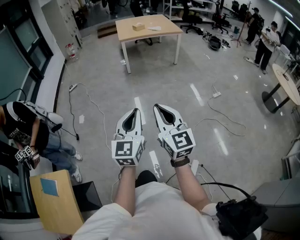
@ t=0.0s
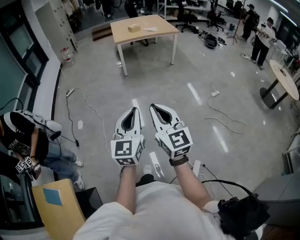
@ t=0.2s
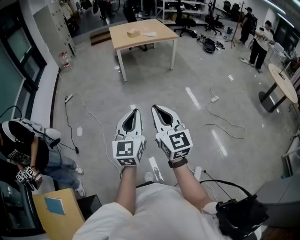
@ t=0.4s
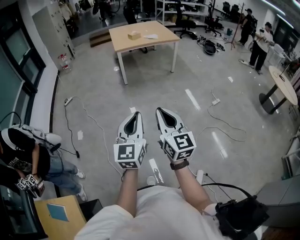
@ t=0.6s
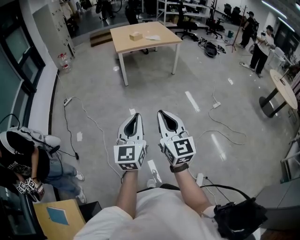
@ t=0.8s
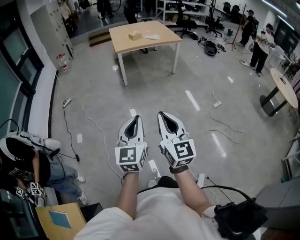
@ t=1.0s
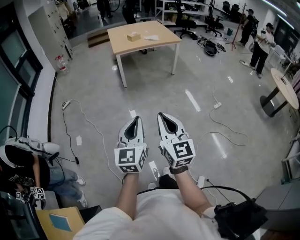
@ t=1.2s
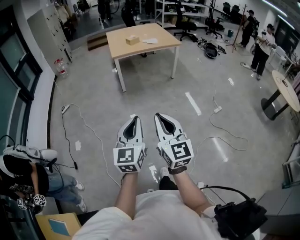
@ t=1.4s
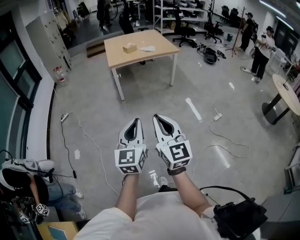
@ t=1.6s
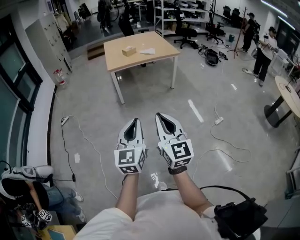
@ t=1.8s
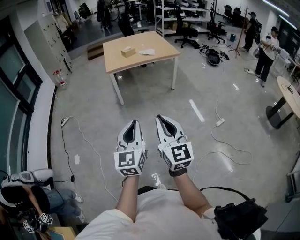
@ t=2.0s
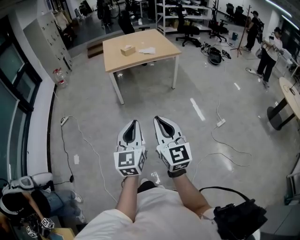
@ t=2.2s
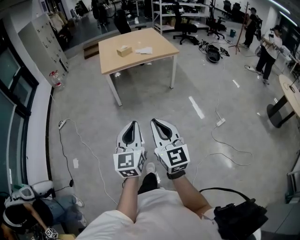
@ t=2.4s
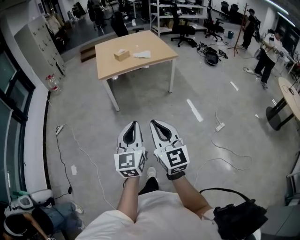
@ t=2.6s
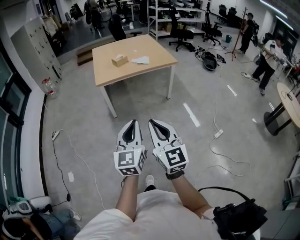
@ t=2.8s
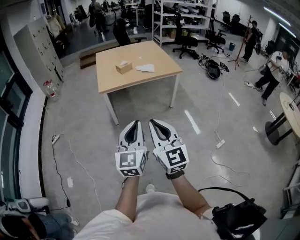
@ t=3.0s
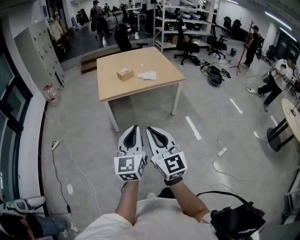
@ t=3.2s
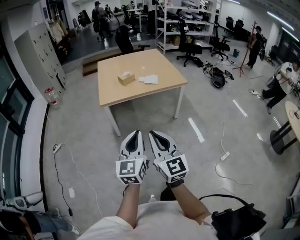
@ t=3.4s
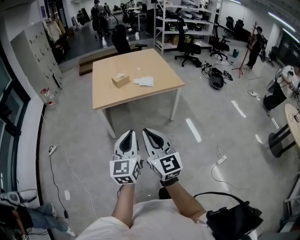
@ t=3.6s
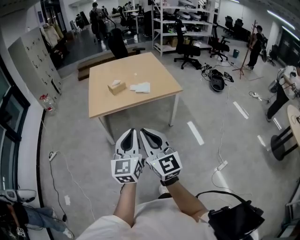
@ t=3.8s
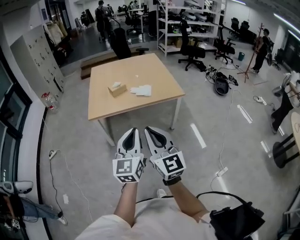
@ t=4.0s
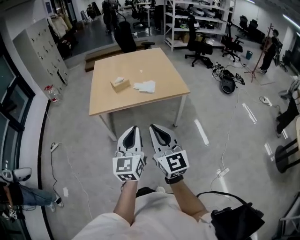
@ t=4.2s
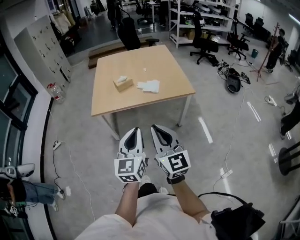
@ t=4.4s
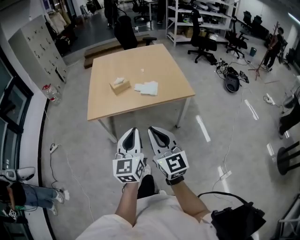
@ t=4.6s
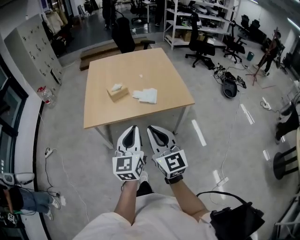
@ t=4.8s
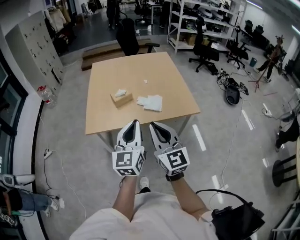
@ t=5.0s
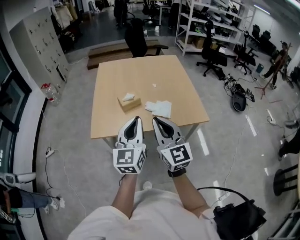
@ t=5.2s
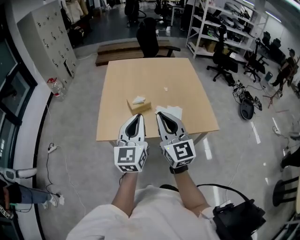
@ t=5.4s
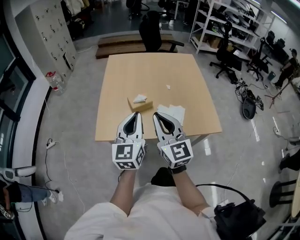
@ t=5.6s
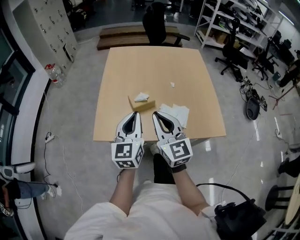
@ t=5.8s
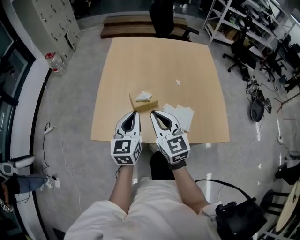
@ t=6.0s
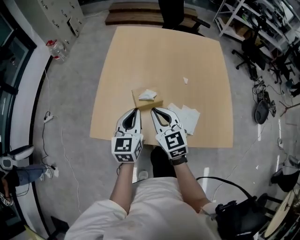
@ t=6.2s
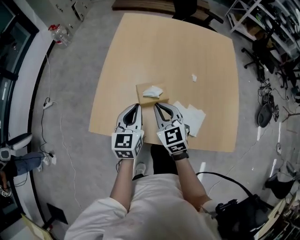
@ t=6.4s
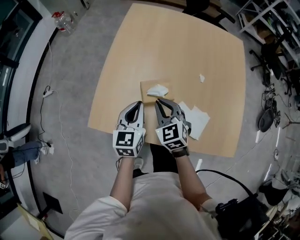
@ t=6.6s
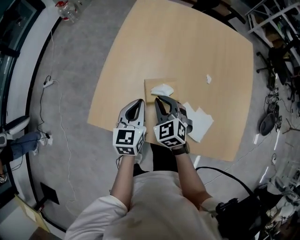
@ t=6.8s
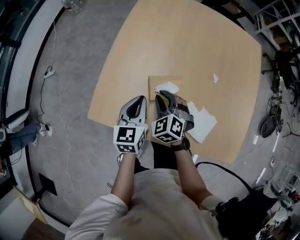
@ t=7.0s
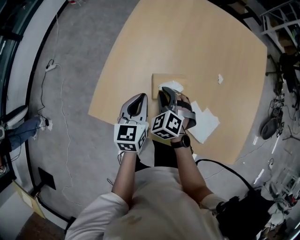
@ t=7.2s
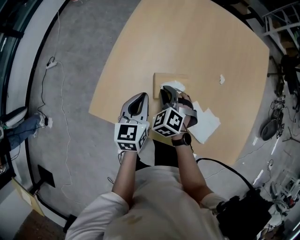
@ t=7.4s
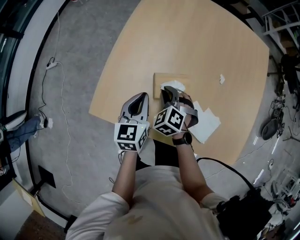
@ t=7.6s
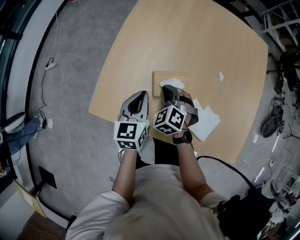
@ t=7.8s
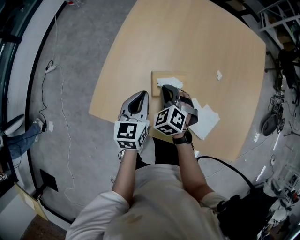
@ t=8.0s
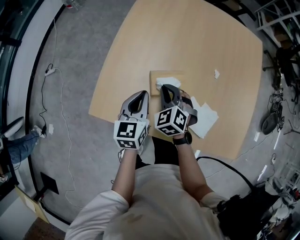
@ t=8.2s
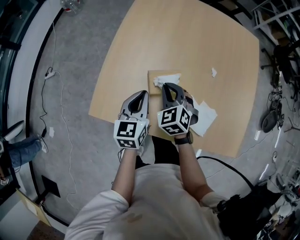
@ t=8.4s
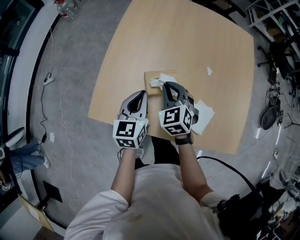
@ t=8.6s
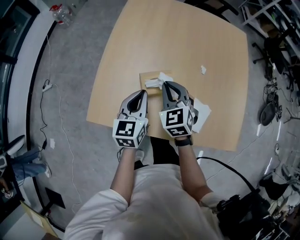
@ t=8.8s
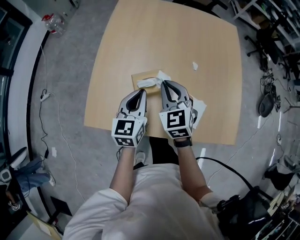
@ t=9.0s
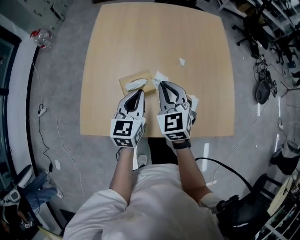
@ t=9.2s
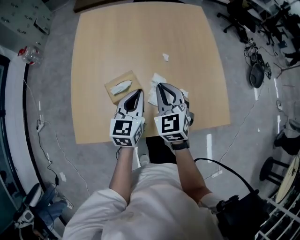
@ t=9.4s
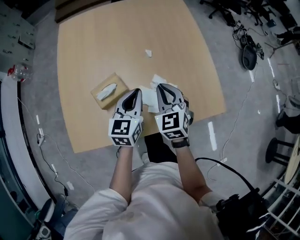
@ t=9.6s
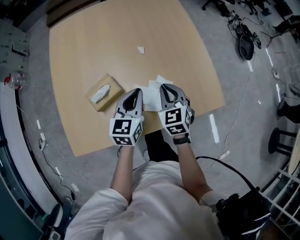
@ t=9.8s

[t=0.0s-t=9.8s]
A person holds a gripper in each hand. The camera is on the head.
t=0.0s to t=1.4s: The two grippers go approximately 30 cm forward.
t=1.4s to t=2.8s: The two grippers go some 40 cm forward.
t=2.8s to t=4.2s: The two grippers travel together, forward and to the right, roughly 40 cm.
t=4.2s to t=5.6s: Both grippers are carried forward, about 50 cm.
t=5.6s to t=7.0s: The left gripper heads forward and downward, covering approximately 35 cm, and changes its angle by about 30 degrees. Meanwhile the right gripper is displaced downward and forward by about 40 cm, and tips its fingers downward by some 50 degrees.
t=7.0s to t=8.4s: The grippers move only a little.
t=8.4s to t=9.8s: The left gripper changes place by some 25 cm, and rotates approximately 30 degrees. Meanwhile the right gripper travels upward and back again, about 10 cm each way, and changes its angle by approximately 40 degrees.

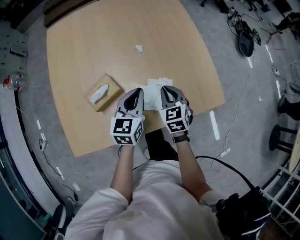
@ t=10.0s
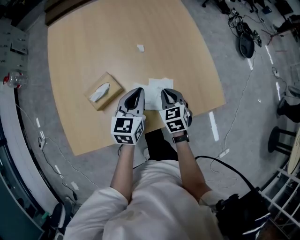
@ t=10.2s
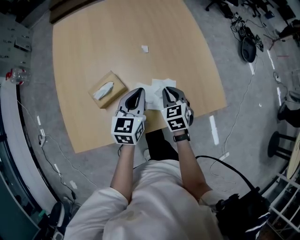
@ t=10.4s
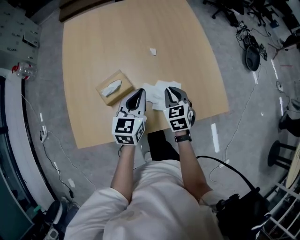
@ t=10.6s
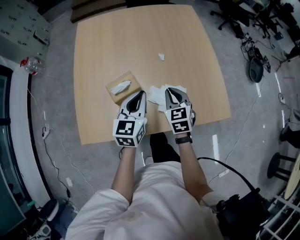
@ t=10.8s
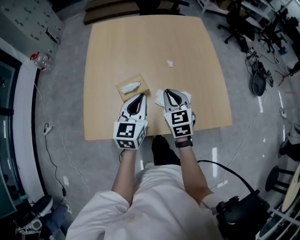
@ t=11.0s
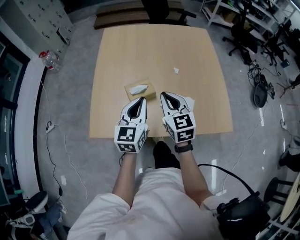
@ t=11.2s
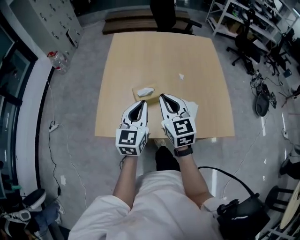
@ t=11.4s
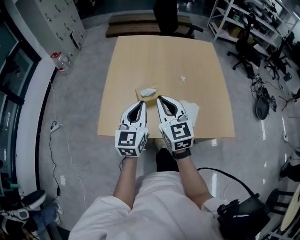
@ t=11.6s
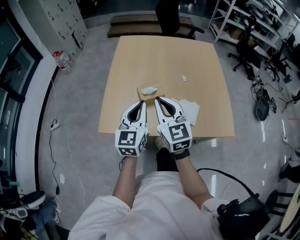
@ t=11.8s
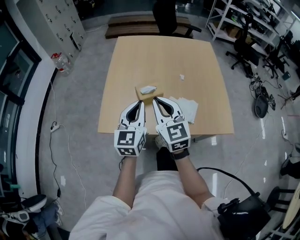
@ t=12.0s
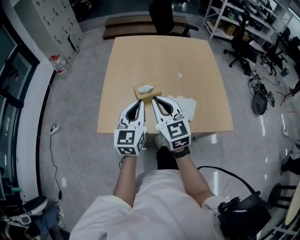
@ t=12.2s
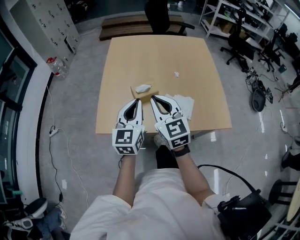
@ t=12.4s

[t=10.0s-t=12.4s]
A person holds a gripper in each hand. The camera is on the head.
t=10.0s to t=11.2s: The left gripper moves to the left, upward and backward, roughly 20 cm, and turns by about 20 degrees; the right gripper moves upward, to the left and backward, roughly 25 cm, and turns by about 30 degrees.
t=11.2s to t=12.4s: The right gripper shifts approximately 15 cm backward, to the left and upward. The left gripper heads backward and to the left, covering approximately 10 cm.

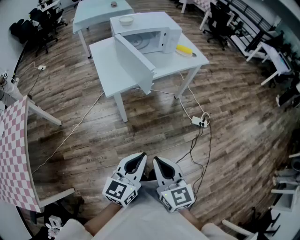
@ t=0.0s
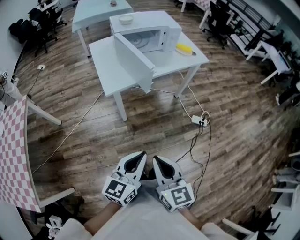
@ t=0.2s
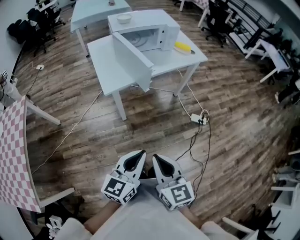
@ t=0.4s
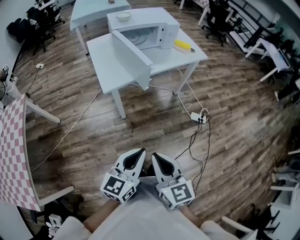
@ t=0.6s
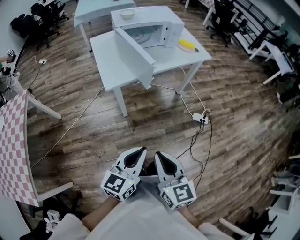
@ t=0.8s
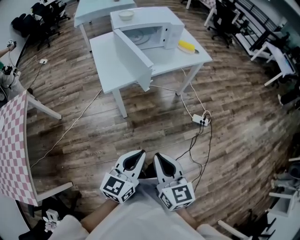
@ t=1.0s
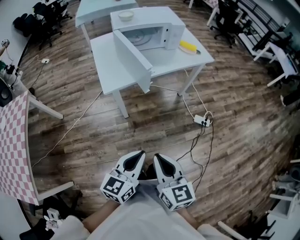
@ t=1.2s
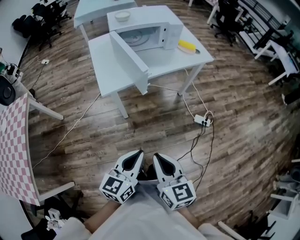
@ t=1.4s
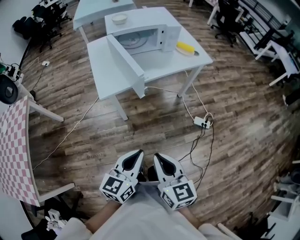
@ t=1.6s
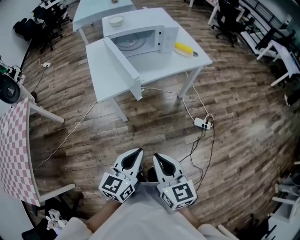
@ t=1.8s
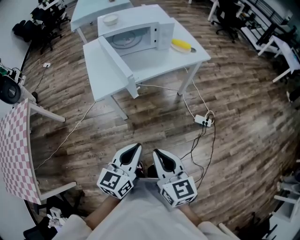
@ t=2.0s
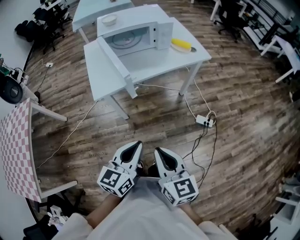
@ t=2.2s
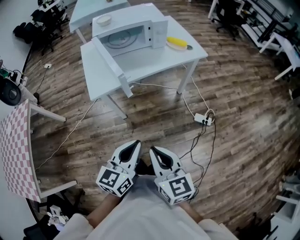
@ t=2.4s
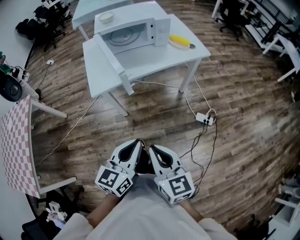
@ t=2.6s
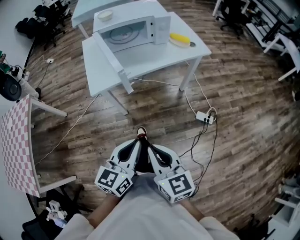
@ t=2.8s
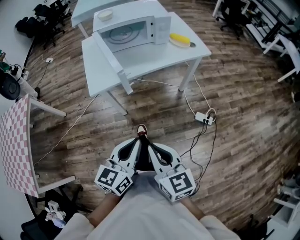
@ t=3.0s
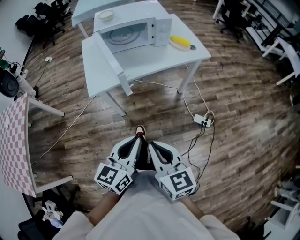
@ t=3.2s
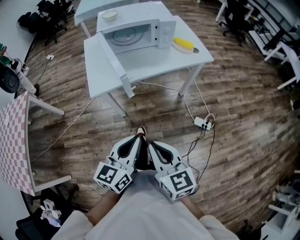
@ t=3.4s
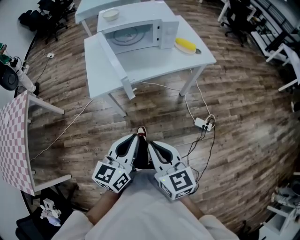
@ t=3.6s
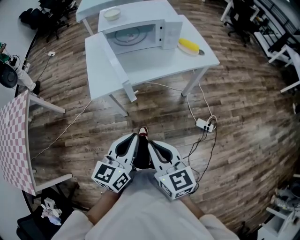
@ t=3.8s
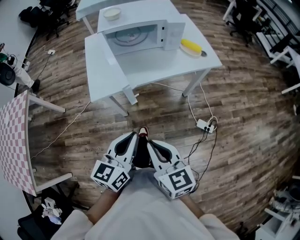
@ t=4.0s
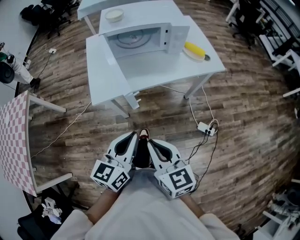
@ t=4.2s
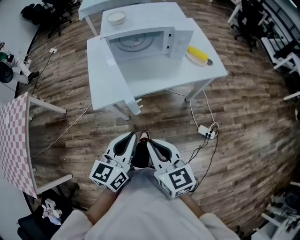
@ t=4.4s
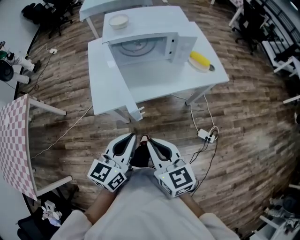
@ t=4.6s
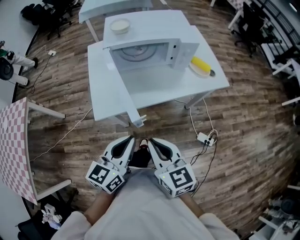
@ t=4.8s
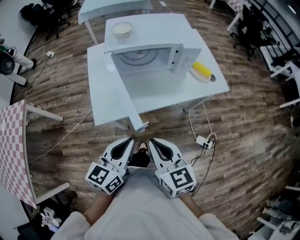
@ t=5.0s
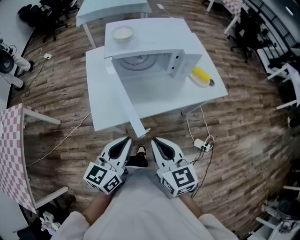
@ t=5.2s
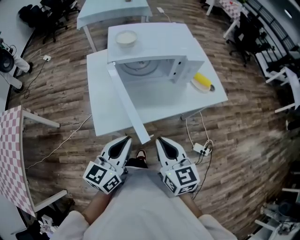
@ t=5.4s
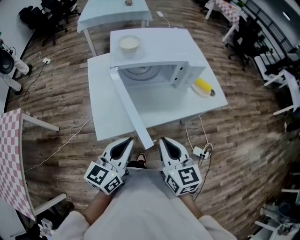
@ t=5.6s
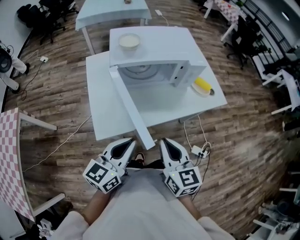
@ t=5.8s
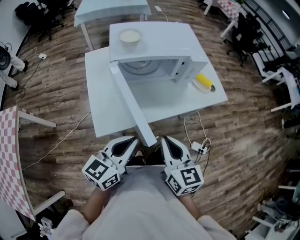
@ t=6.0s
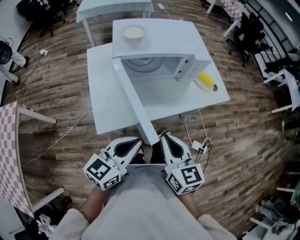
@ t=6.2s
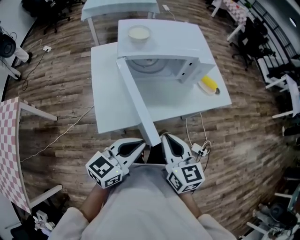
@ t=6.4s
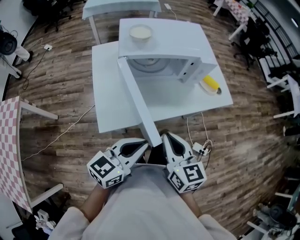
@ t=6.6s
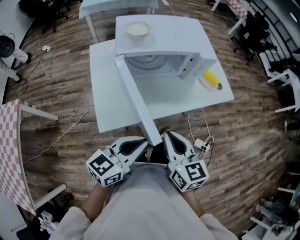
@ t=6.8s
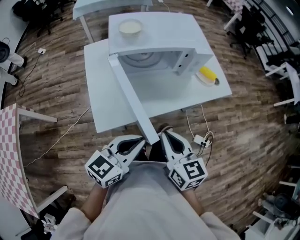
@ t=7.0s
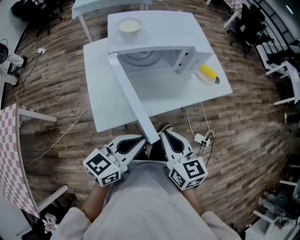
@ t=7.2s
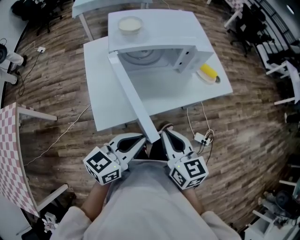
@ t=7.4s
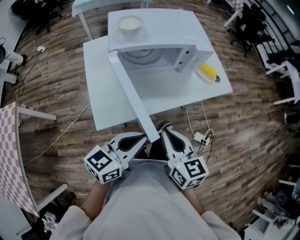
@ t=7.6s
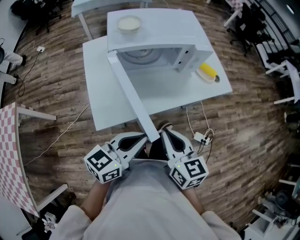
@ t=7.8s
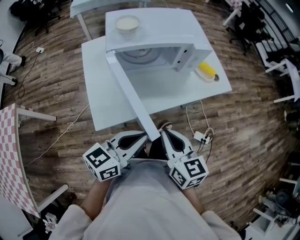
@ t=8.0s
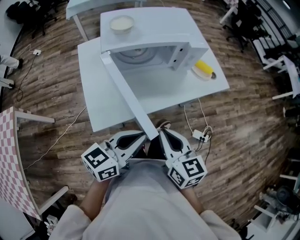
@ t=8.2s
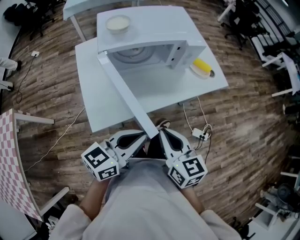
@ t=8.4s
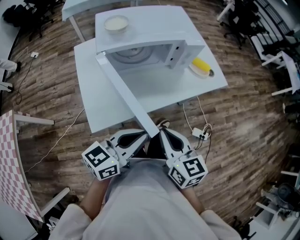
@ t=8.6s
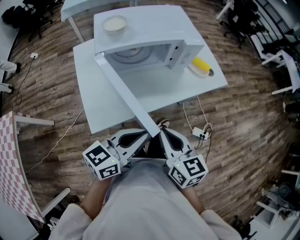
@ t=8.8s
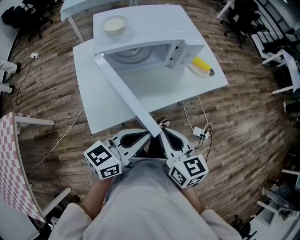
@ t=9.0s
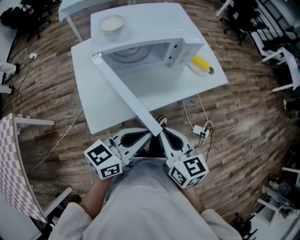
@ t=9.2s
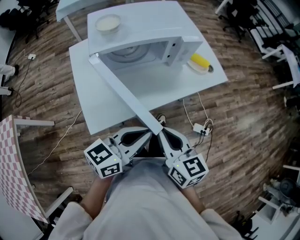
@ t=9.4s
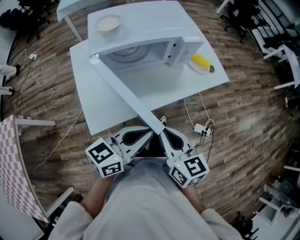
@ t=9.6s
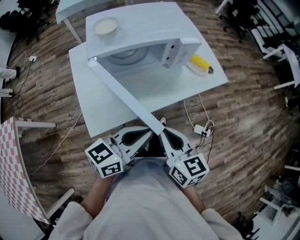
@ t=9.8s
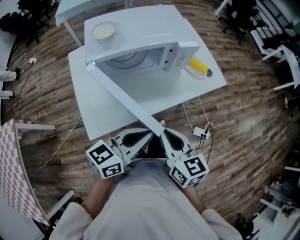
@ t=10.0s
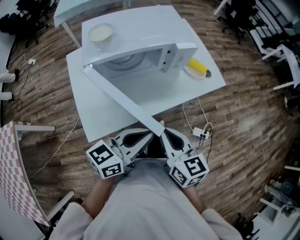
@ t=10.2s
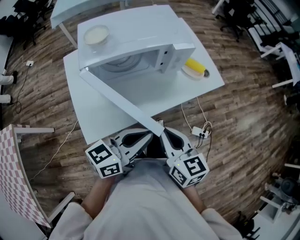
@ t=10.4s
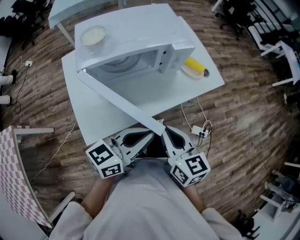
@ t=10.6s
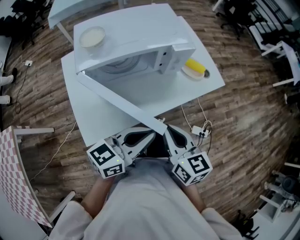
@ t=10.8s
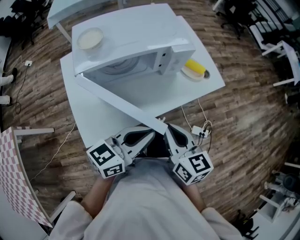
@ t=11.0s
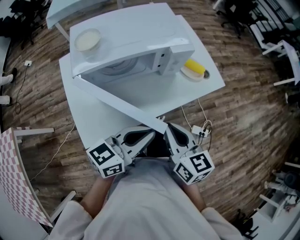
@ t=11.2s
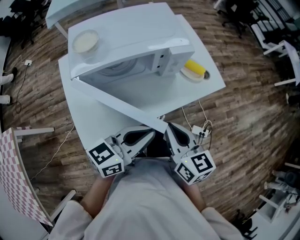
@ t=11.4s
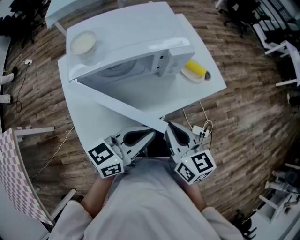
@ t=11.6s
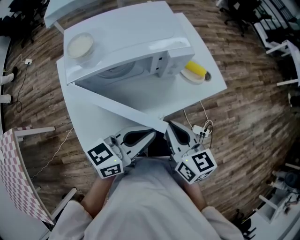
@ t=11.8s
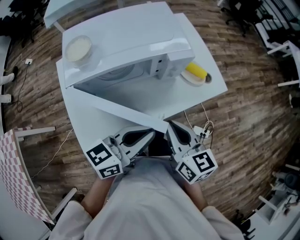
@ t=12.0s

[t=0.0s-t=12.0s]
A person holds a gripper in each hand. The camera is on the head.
t=0.0s to t=1.6s: The right gripper heads forward and to the right, covering about 10 cm, while the left gripper is displaced forward by roughly 5 cm.
t=1.6s to t=3.0s: The two grippers go some 10 cm to the right.
t=3.0s to t=4.4s: The two grippers go approximately 15 cm forward.
t=4.4s to t=6.0s: The left gripper heads forward and to the left, covering some 15 cm, while the right gripper shifts roughly 15 cm forward.
t=6.0s to t=7.6s: The grippers stay close to where they were, moving slightly.
t=7.6s to t=9.0s: The grippers move only a little.
t=9.0s to t=10.4s: The grippers both shift forward by roughly 5 cm.
t=10.4s to t=12.0s: Both grippers move forward, roughly 10 cm.
